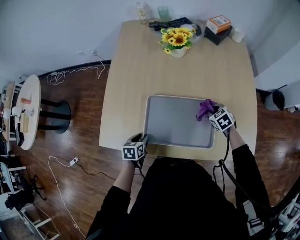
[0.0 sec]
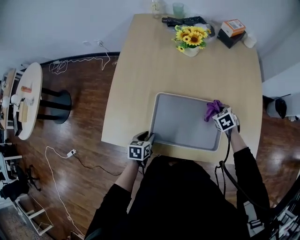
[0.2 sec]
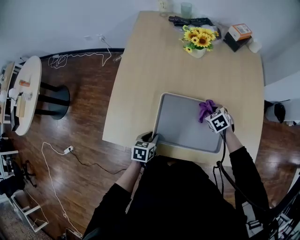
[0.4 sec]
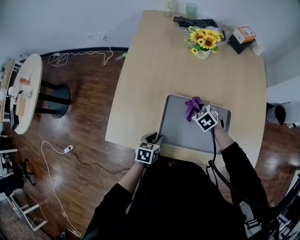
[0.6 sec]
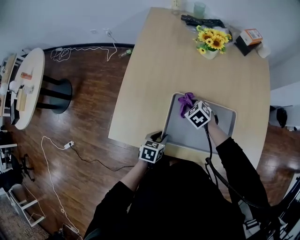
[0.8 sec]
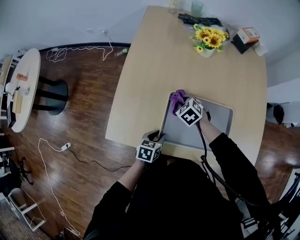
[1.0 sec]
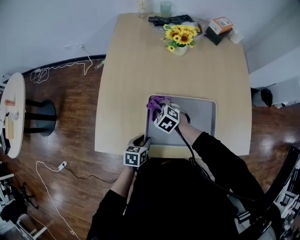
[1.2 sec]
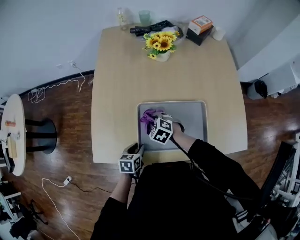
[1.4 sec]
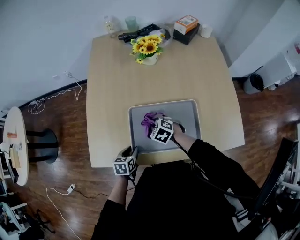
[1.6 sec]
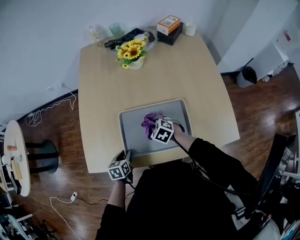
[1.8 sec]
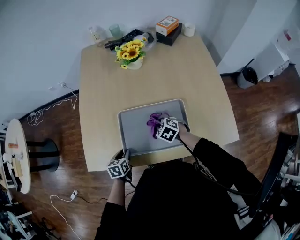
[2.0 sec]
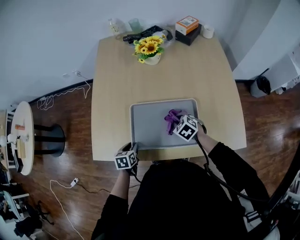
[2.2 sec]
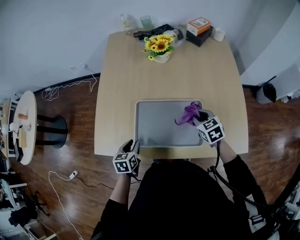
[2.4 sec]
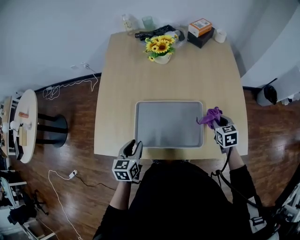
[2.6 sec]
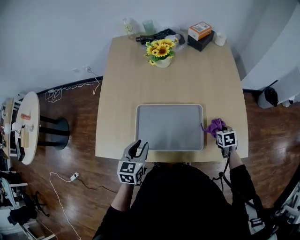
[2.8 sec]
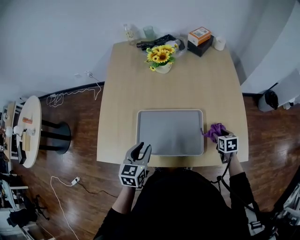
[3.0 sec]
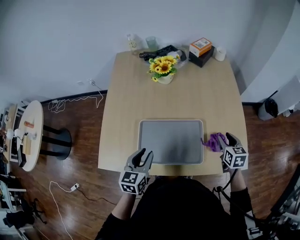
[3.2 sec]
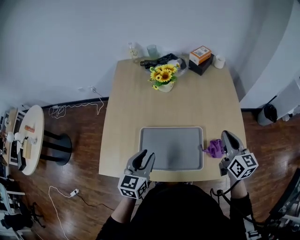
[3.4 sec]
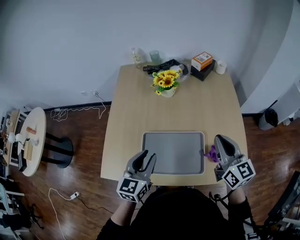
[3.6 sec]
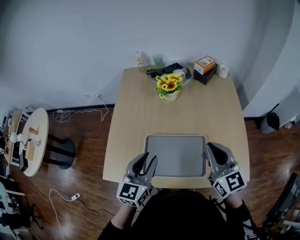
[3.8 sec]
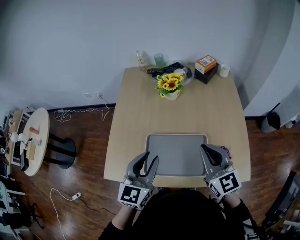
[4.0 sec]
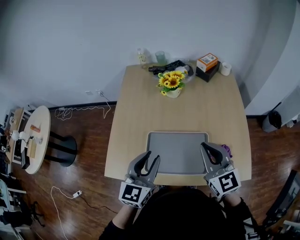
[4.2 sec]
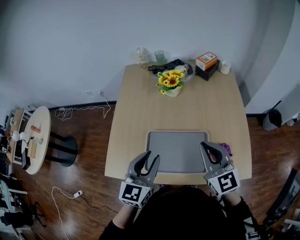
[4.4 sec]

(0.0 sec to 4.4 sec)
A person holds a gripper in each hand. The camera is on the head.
0.0 sec - 1.4 sec: The right gripper shifts some 30 cm to the left, and turns by some 20 degrees.
1.4 sec - 3.0 sec: The right gripper shifts approximately 40 cm to the right, rotates around the line of its fingers by some 50 degrees, clockwise from behind, and opens up, while the left gripper travels upward and to the right by roughly 20 cm, and turns by about 30 degrees.
3.0 sec - 4.4 sec: The left gripper is displaced upward by approximately 15 cm, and changes its angle by about 20 degrees, while the right gripper heads upward and to the left, covering some 40 cm, tips its fingers upward by about 50 degrees, and closes its fingers.
